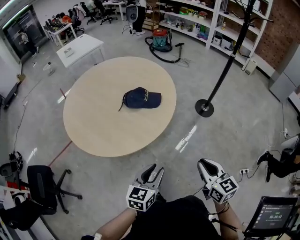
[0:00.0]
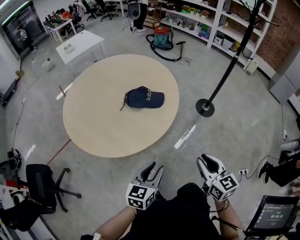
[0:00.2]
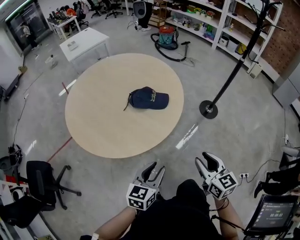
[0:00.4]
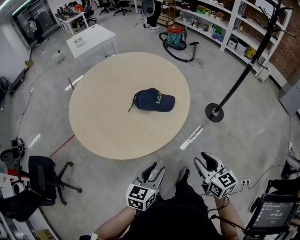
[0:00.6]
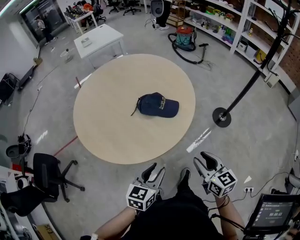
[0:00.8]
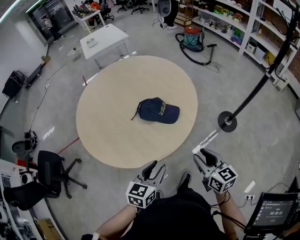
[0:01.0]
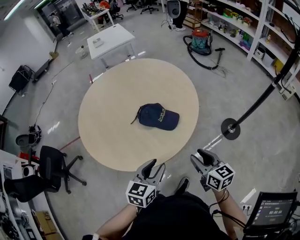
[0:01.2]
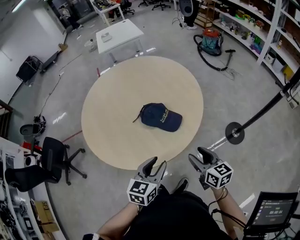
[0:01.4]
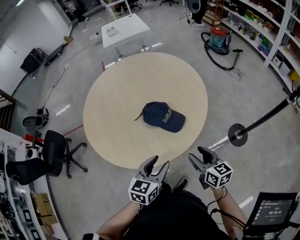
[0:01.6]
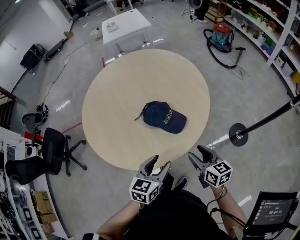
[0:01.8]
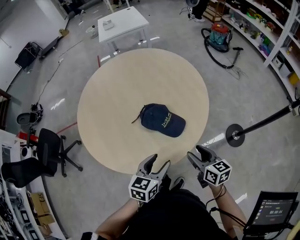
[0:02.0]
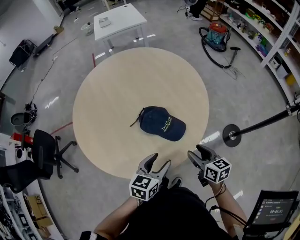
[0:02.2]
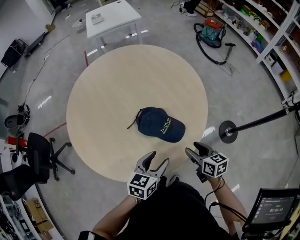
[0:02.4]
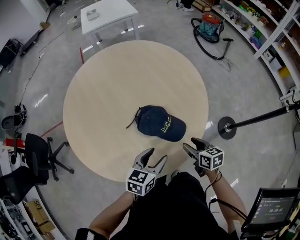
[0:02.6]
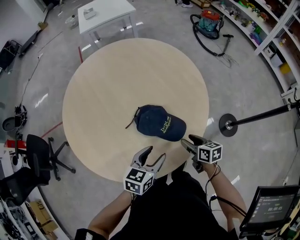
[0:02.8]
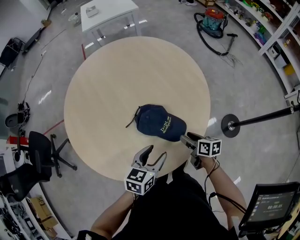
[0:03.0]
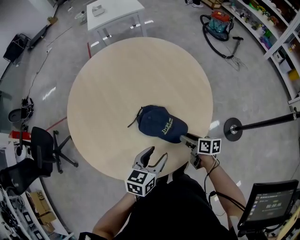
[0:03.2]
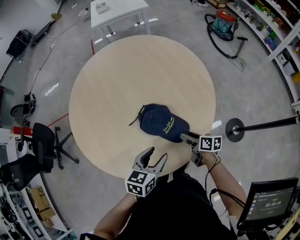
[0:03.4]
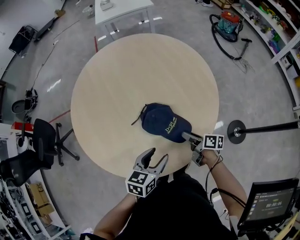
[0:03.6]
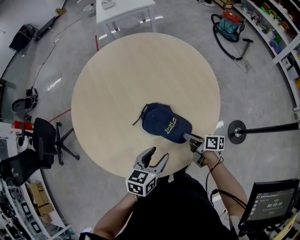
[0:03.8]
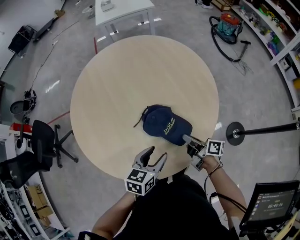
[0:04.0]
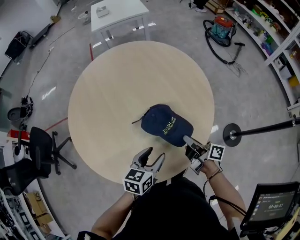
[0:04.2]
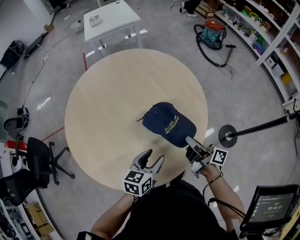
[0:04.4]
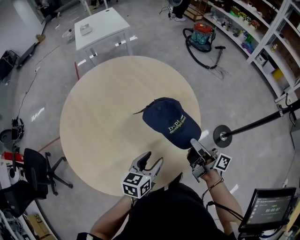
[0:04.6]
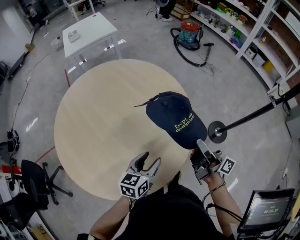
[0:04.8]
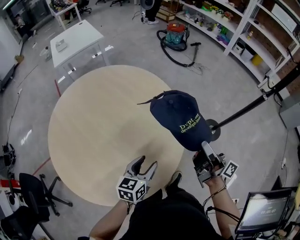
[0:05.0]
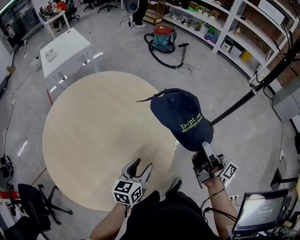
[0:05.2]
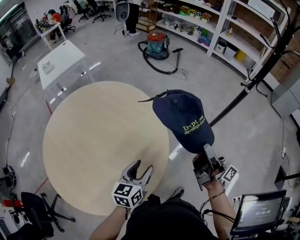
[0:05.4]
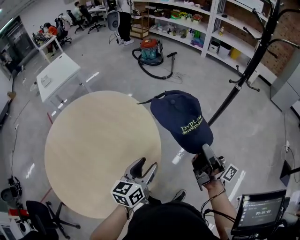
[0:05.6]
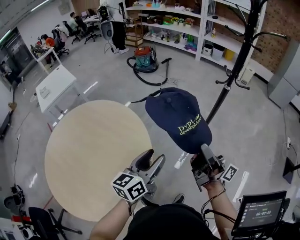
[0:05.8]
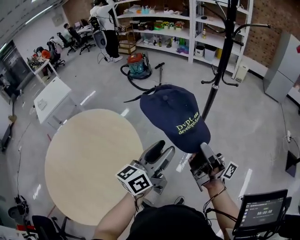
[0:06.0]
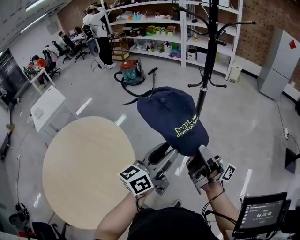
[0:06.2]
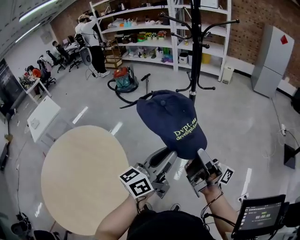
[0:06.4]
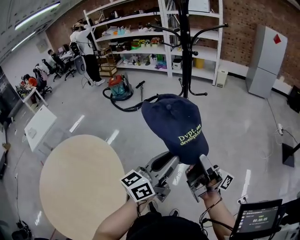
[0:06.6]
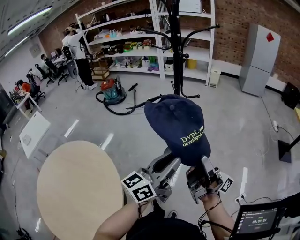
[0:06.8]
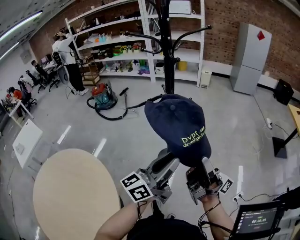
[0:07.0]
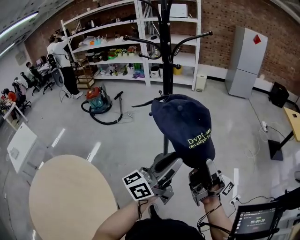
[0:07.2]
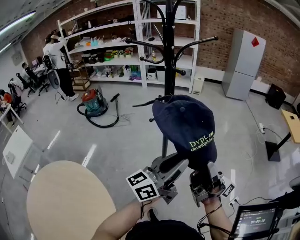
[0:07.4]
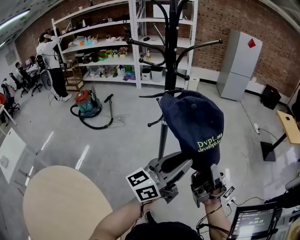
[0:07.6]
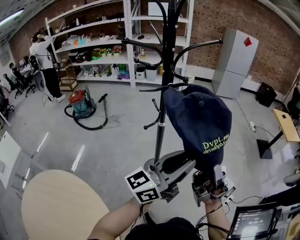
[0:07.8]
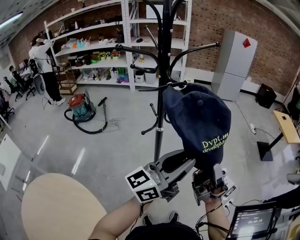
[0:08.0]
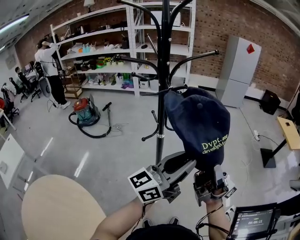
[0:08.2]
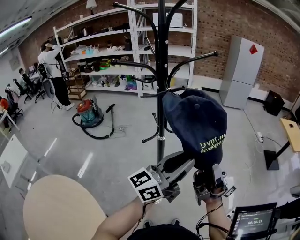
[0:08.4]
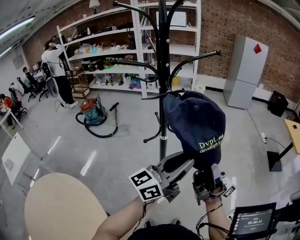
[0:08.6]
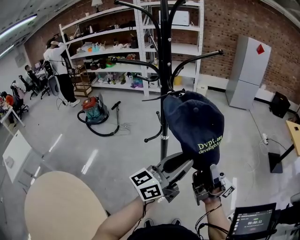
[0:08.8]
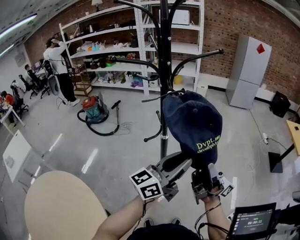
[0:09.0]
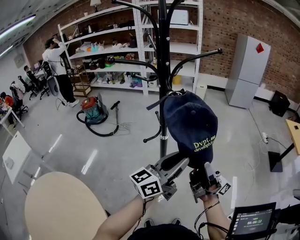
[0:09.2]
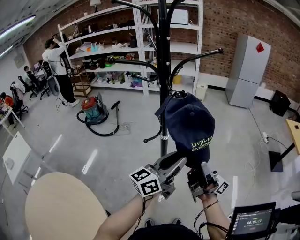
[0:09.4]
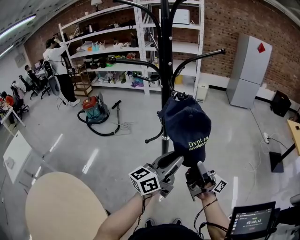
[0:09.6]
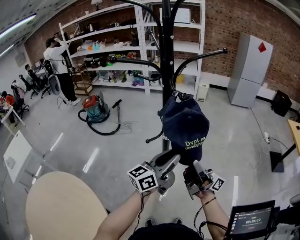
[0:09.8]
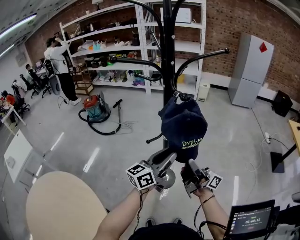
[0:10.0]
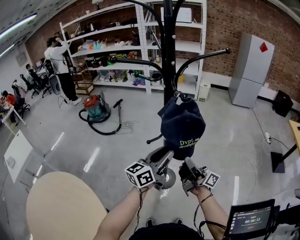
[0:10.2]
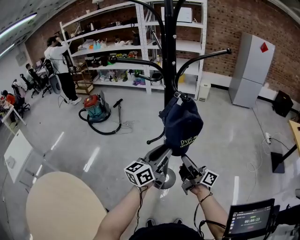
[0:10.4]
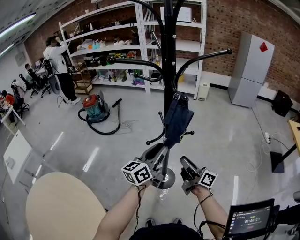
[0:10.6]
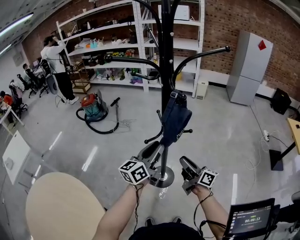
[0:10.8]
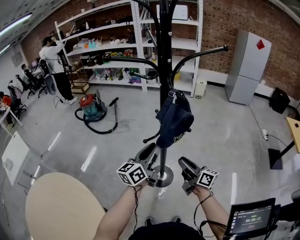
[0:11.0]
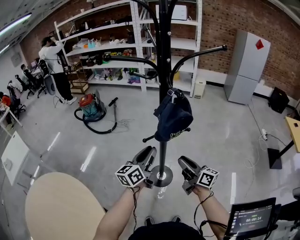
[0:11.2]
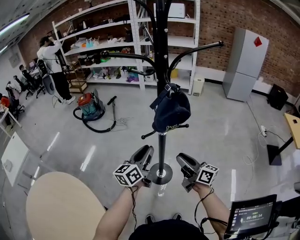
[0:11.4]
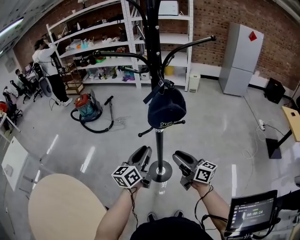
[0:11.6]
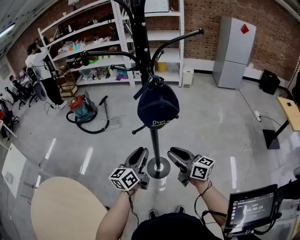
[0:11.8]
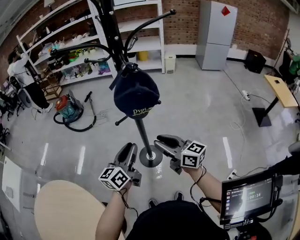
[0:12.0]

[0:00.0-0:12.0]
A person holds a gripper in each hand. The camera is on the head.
0.0 to 1.6 s: The left gripper ends up approximately 25 cm from where it was, and swivels approximately 30 degrees; the right gripper changes place by some 35 cm, swivels roughly 30 degrees, and opens.
1.6 to 3.0 s: Both grippers move forward and downward, approximately 20 cm. The right gripper turns by approximately 30 degrees.
3.0 to 4.4 s: The right gripper shifts some 15 cm upward, angles its fingers upward, by roughly 40 degrees, and closes.
4.4 to 6.0 s: The right gripper shifts by about 50 cm, and tips its fingers upward by some 40 degrees. The left gripper changes place by roughly 50 cm, and points its fingers about 40 degrees further upward.
6.0 to 7.6 s: The right gripper shifts by some 20 cm, and changes its angle by roughly 30 degrees. Meanwhile the left gripper ends up about 30 cm from where it was, swivels some 40 degrees, and closes its fingers.
7.6 to 9.0 s: Both grippers move forward, about 10 cm.
9.0 to 10.4 s: Both grippers move downward, forward and to the left, roughly 20 cm. The right gripper tips its fingers downward by about 30 degrees.
10.4 to 12.0 s: The left gripper goes about 10 cm downward and backward. The right gripper is displaced backward by approximately 5 cm, and turns by roughly 40 degrees.

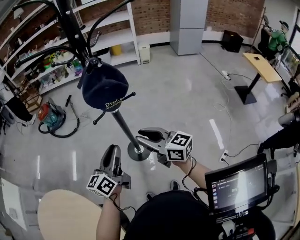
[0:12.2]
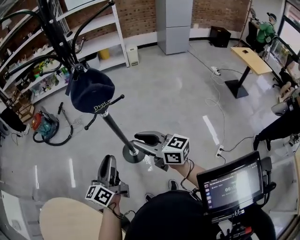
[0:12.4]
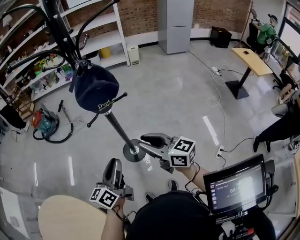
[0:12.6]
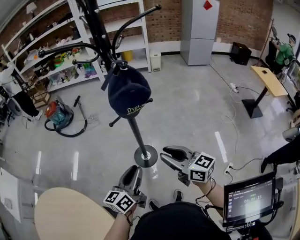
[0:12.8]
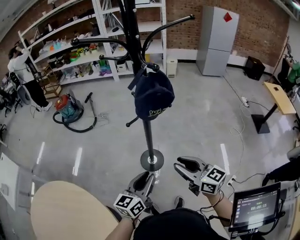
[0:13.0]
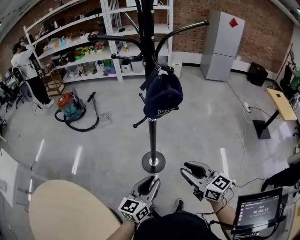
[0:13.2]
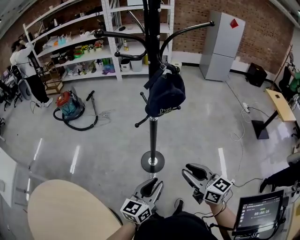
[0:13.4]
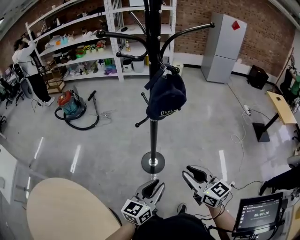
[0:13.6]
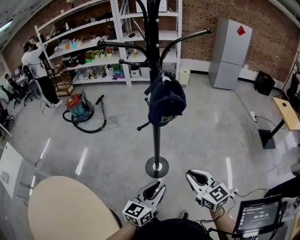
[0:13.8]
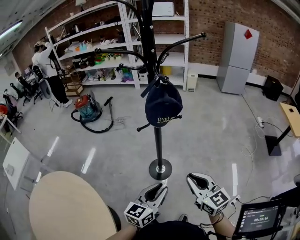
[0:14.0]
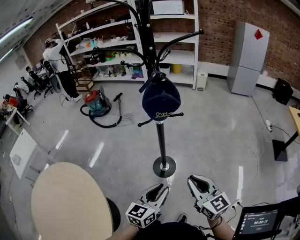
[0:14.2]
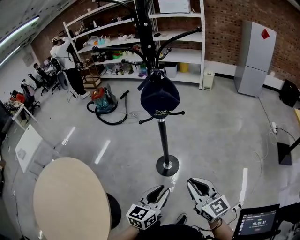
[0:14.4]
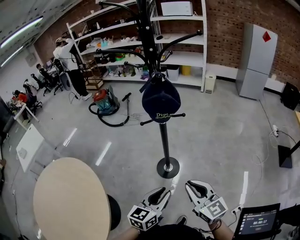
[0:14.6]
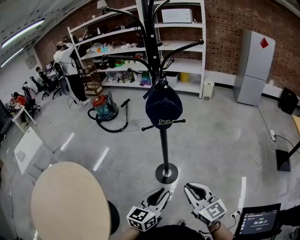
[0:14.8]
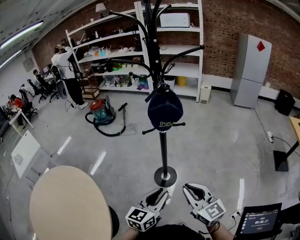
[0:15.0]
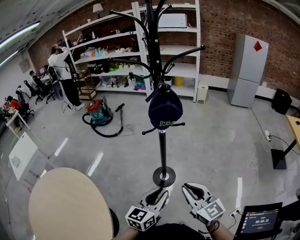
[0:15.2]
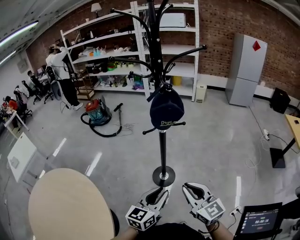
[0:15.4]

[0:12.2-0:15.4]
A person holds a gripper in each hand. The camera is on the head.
12.2 to 13.8 s: Both grippers move backward, about 10 cm. The right gripper turns by approximately 30 degrees.
13.8 to 15.4 s: The right gripper heads backward, covering about 5 cm.

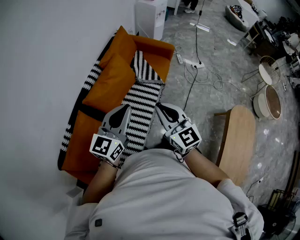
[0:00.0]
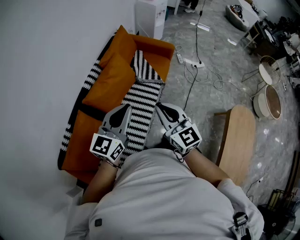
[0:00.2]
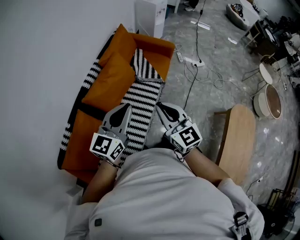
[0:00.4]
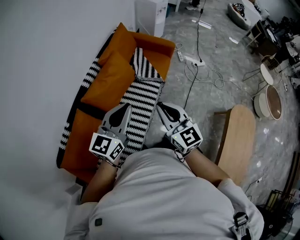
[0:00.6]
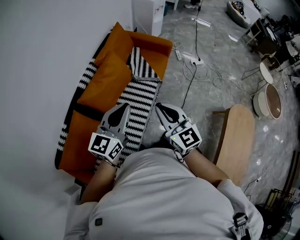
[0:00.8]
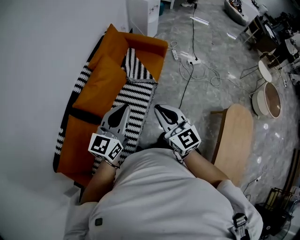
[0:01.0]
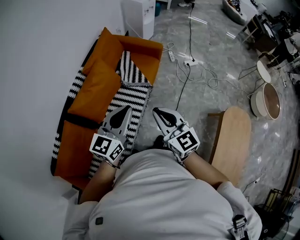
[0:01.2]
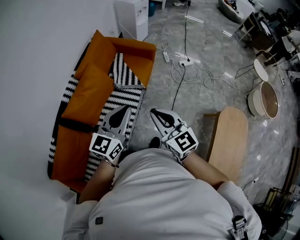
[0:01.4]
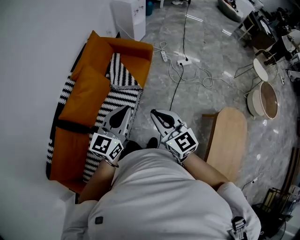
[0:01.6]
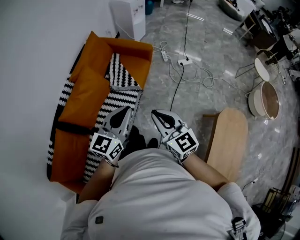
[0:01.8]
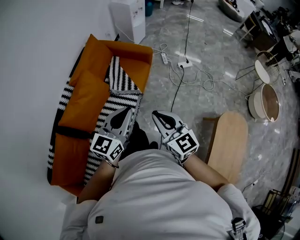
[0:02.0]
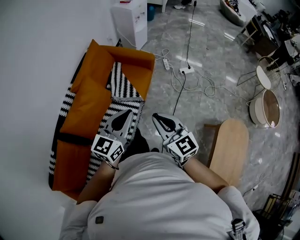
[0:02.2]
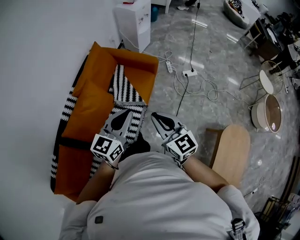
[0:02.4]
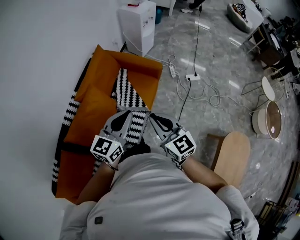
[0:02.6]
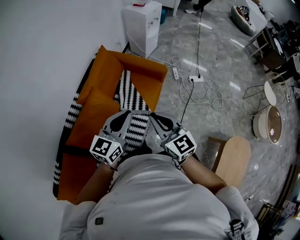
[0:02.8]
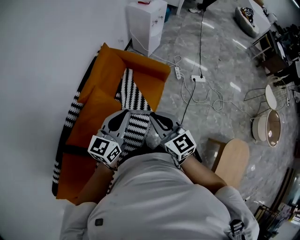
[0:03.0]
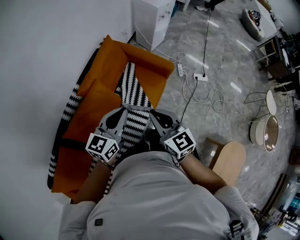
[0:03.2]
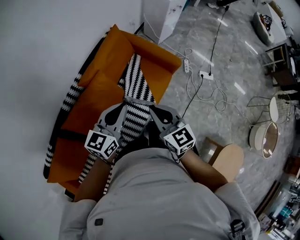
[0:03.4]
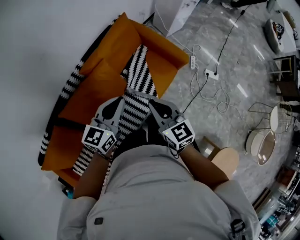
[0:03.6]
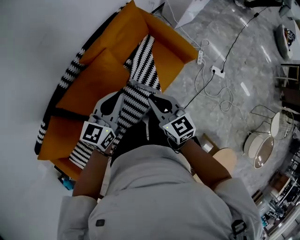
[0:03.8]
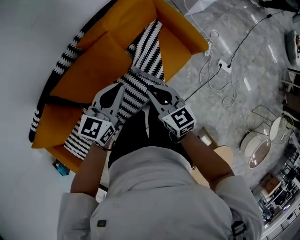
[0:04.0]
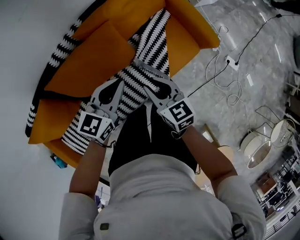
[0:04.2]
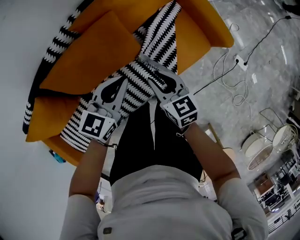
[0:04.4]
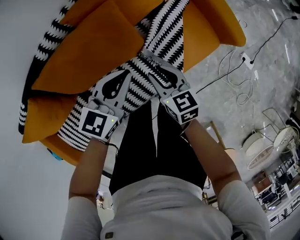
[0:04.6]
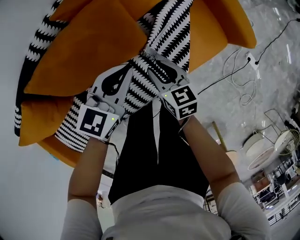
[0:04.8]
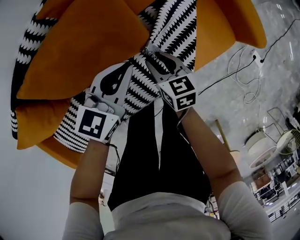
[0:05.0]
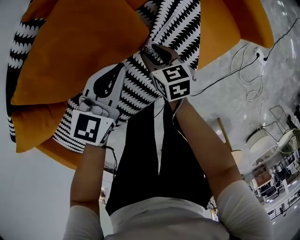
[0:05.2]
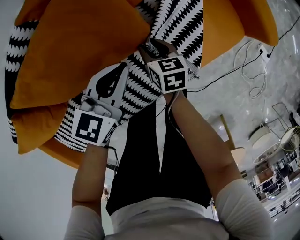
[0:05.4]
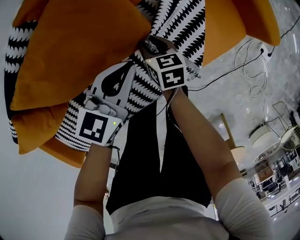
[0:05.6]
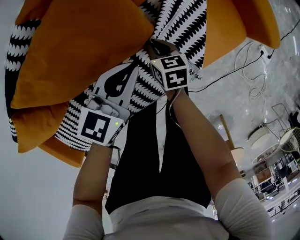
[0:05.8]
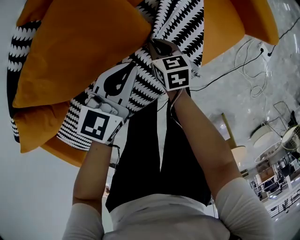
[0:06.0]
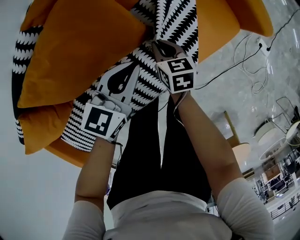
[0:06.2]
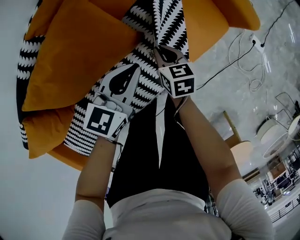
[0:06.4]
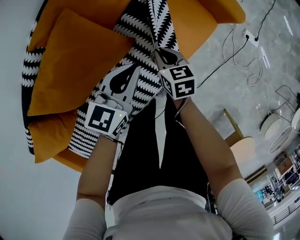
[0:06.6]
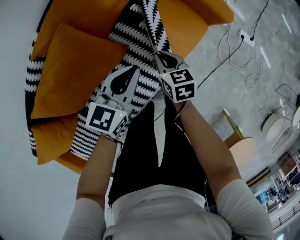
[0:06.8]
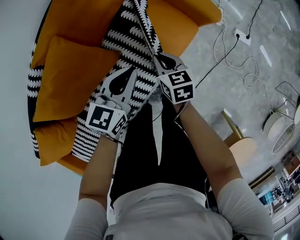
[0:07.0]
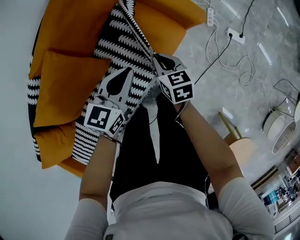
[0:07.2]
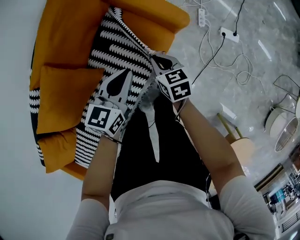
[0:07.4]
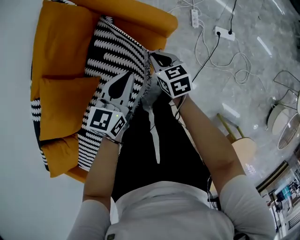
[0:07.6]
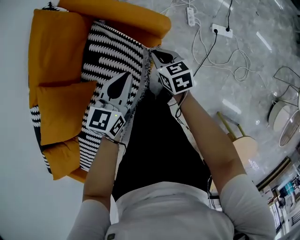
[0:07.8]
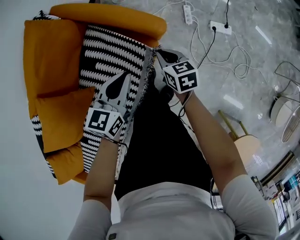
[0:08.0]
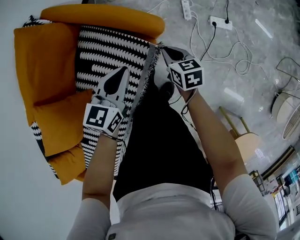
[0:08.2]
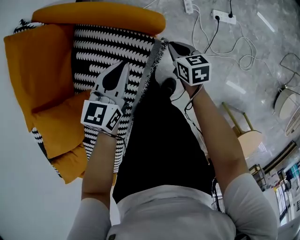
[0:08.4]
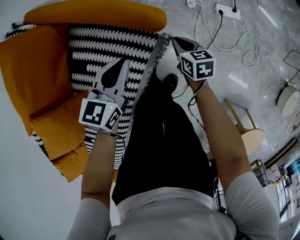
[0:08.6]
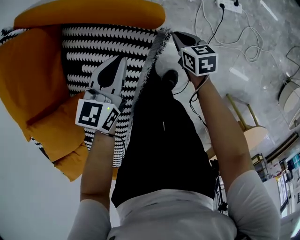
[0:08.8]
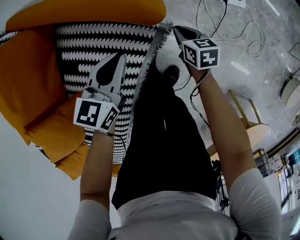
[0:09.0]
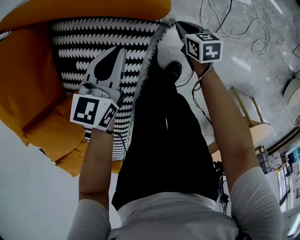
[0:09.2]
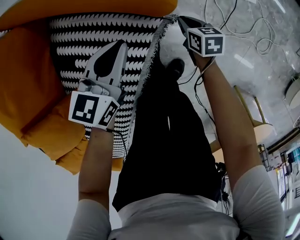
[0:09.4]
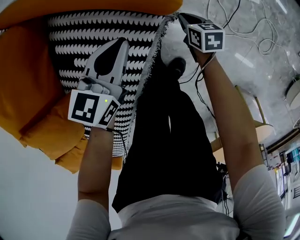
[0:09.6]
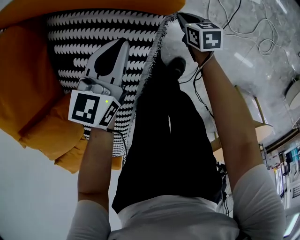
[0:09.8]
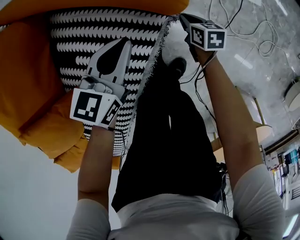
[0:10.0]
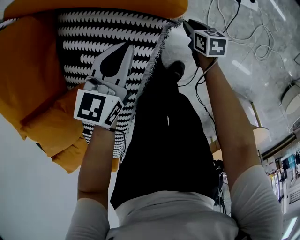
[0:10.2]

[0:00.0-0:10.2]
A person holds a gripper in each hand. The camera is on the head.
0.0 to 1.4 s: Both grippers move to the right and forward, approximately 20 cm.
1.4 to 3.0 s: The grippers both shift forward by roughly 30 cm.
3.0 to 4.4 s: The two grippers go roughly 35 cm downward. The right gripper rotates roughly 40 degrees, and opens its fingers, while the left gripper swivels roughly 30 degrees.
4.4 to 5.8 s: The left gripper is displaced downward by roughly 20 cm. The right gripper travels downward by some 30 cm, and turns by about 20 degrees.
5.8 to 7.2 s: The grippers both shift to the right and upward by about 30 cm.
7.2 to 8.8 s: The right gripper shifts about 35 cm to the right, downward and forward, and turns by roughly 20 degrees. The left gripper goes some 25 cm to the right, forward and downward.
8.8 to 10.2 s: The right gripper is displaced downward by approximately 10 cm.
